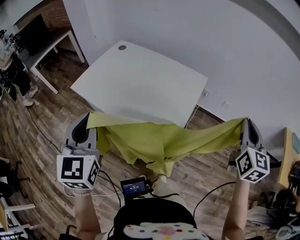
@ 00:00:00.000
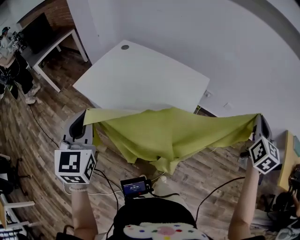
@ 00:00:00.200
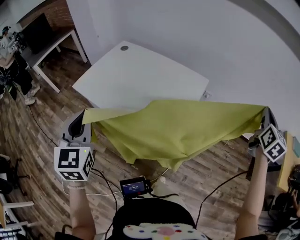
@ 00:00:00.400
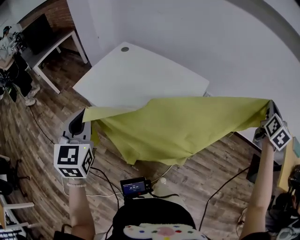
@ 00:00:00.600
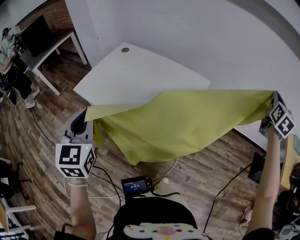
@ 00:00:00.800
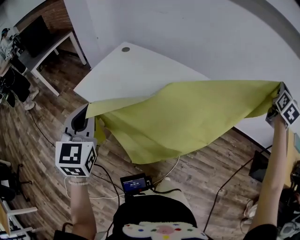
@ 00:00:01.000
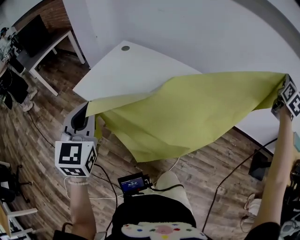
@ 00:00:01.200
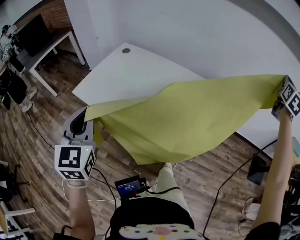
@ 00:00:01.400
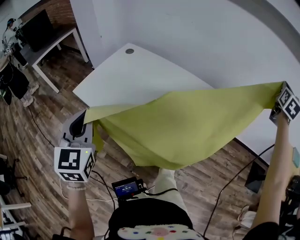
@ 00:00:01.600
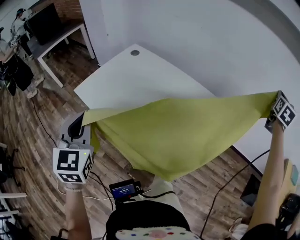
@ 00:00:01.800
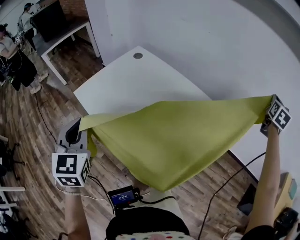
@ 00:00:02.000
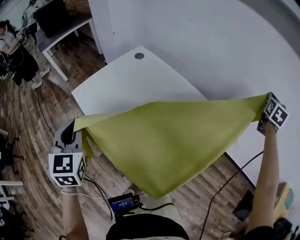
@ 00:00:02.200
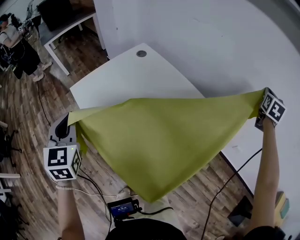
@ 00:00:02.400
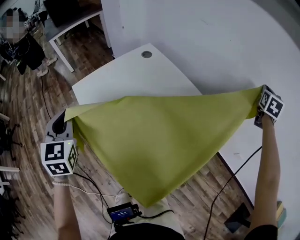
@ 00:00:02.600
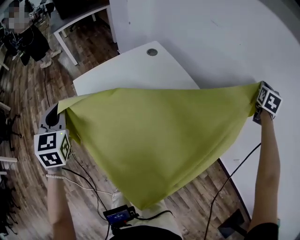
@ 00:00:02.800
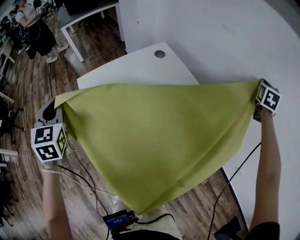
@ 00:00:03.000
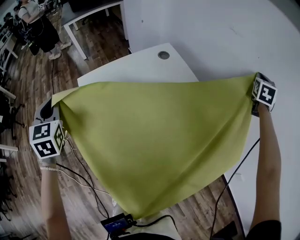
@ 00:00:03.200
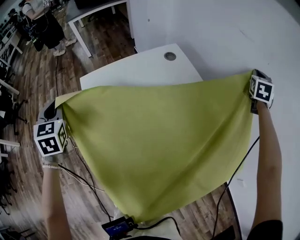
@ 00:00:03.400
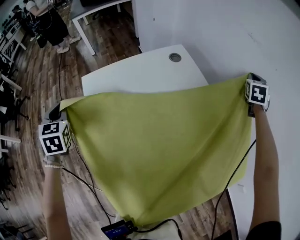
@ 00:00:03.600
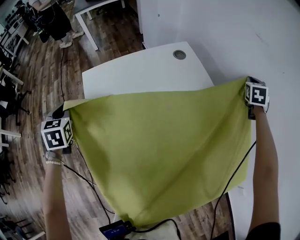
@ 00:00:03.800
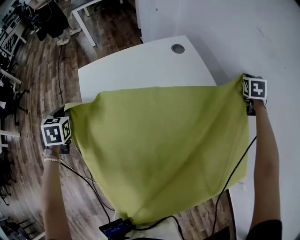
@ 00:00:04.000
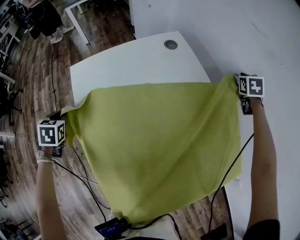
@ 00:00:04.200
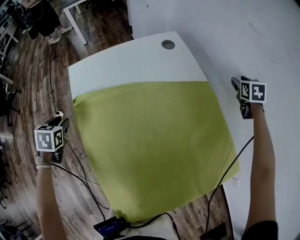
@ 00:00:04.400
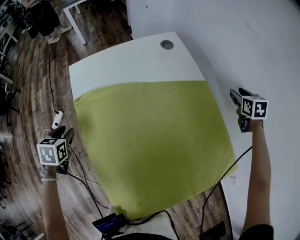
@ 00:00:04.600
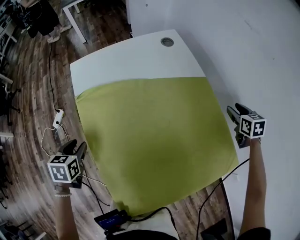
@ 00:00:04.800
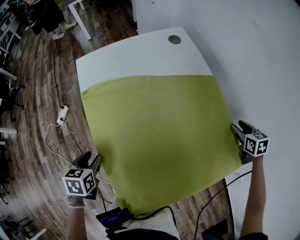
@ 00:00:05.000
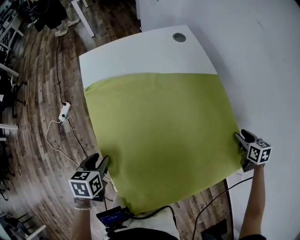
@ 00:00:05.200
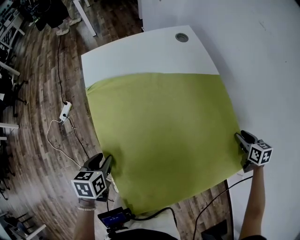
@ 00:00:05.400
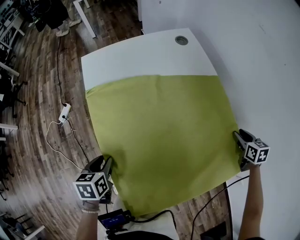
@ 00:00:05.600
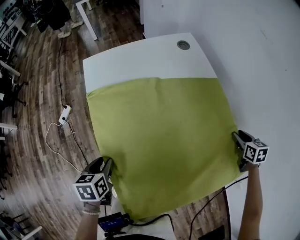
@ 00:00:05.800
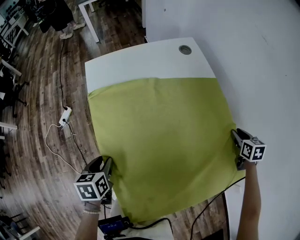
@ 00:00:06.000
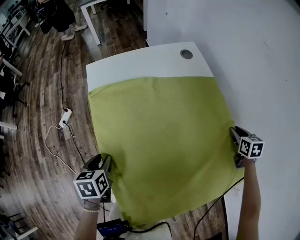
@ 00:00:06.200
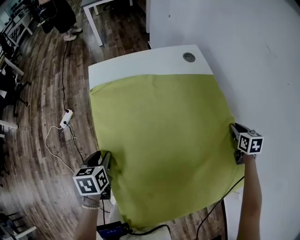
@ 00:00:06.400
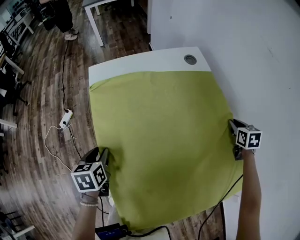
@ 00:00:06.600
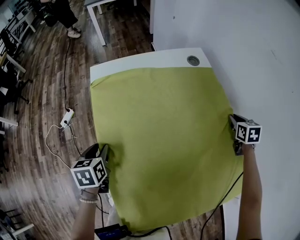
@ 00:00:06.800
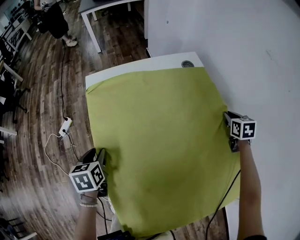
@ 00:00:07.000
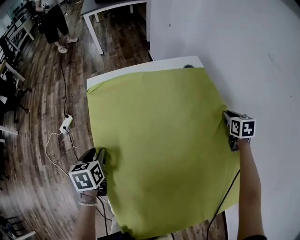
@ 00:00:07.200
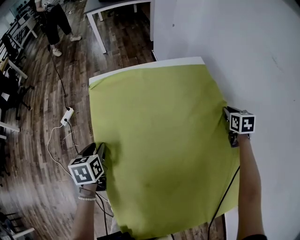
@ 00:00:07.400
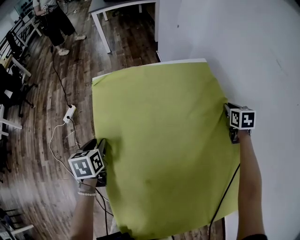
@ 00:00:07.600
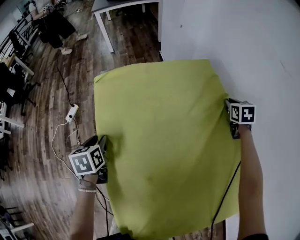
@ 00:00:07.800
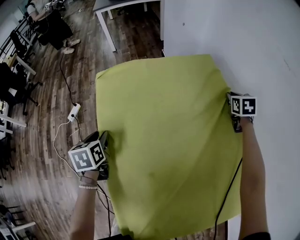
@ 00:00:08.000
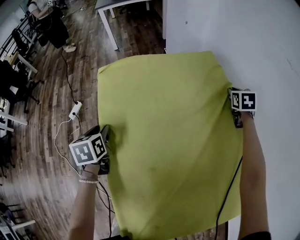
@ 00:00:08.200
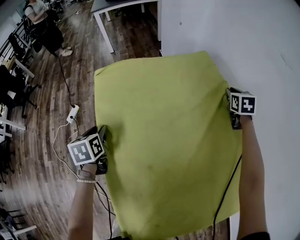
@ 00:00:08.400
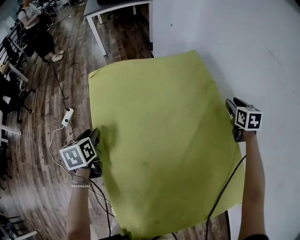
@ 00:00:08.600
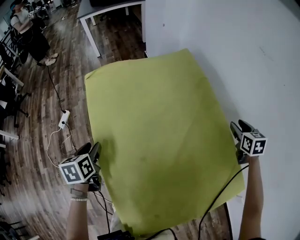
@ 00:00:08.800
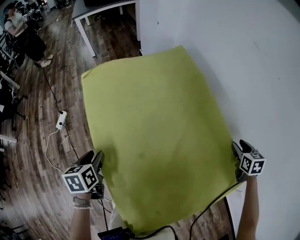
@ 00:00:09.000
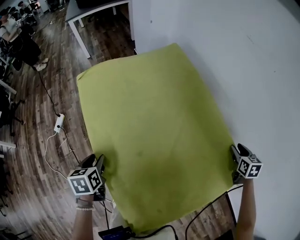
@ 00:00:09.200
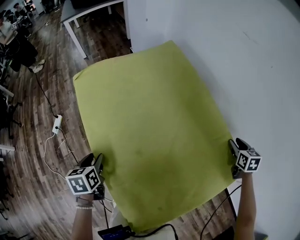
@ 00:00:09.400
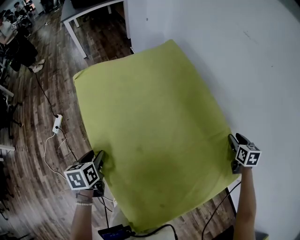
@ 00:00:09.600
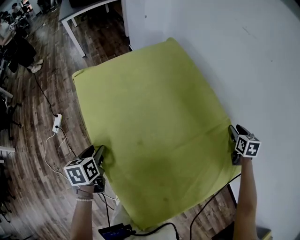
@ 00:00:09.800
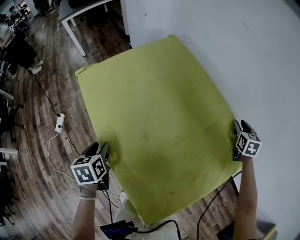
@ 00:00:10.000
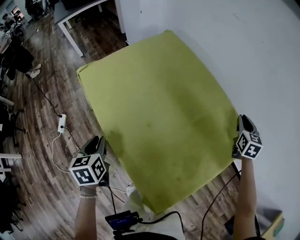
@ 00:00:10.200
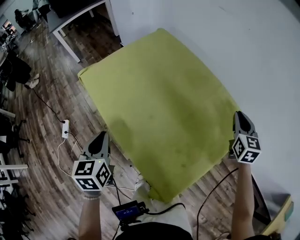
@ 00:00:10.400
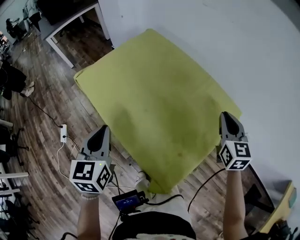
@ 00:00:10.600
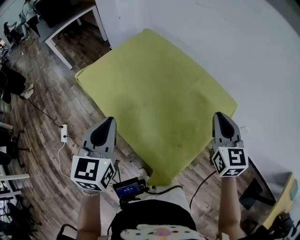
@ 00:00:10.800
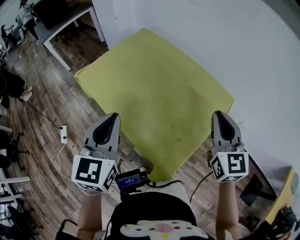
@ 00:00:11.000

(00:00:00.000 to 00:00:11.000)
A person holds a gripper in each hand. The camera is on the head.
00:00:00.000 - 00:00:01.600: The left gripper moves to the left and forward, approximately 10 cm. The right gripper is displaced forward, upward and to the right by approximately 30 cm, and turns by some 20 degrees.
00:00:01.600 - 00:00:03.200: The right gripper ends up approximately 60 cm from where it was, and changes its angle by roughly 40 degrees. Meanwhile the left gripper changes place by roughly 20 cm, and rotates about 50 degrees.
00:00:03.200 - 00:00:04.800: The left gripper moves downward and backward, approximately 25 cm, points its fingers roughly 30 degrees further downward, and opens. The right gripper heads downward and to the left, covering roughly 25 cm, swivels roughly 50 degrees, and opens.
00:00:04.800 - 00:00:06.200: The right gripper goes backward and returns, some 10 cm each way, and closes its fingers. The left gripper shifts some 5 cm to the right.
00:00:06.200 - 00:00:07.800: The left gripper moves forward, approximately 15 cm; the right gripper moves forward, about 25 cm.
00:00:07.800 - 00:00:09.400: The right gripper moves backward, about 35 cm, and opens its fingers; the left gripper moves backward, some 10 cm.
00:00:09.400 - 00:00:11.000: The right gripper is displaced backward, upward and to the left by some 40 cm, tilts its fingers about 40 degrees upward, and closes up. The left gripper shifts approximately 30 cm upward, angles its fingers upward, by roughly 40 degrees, and closes up.

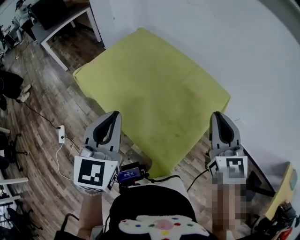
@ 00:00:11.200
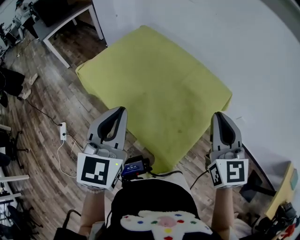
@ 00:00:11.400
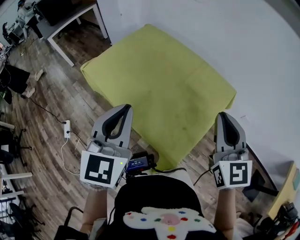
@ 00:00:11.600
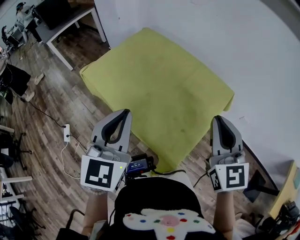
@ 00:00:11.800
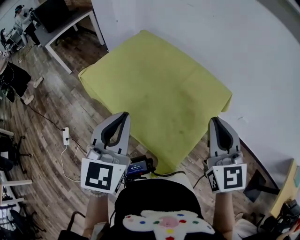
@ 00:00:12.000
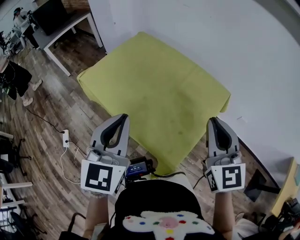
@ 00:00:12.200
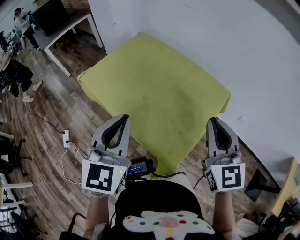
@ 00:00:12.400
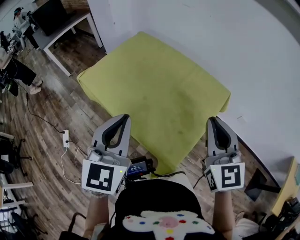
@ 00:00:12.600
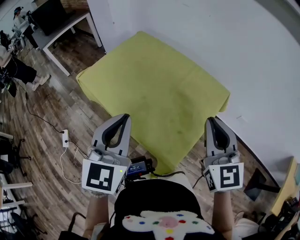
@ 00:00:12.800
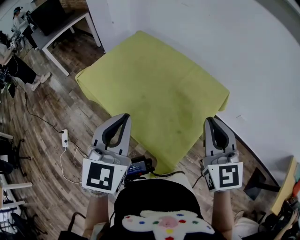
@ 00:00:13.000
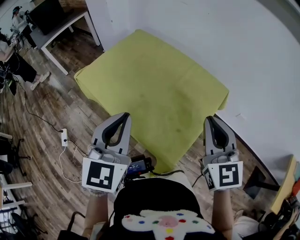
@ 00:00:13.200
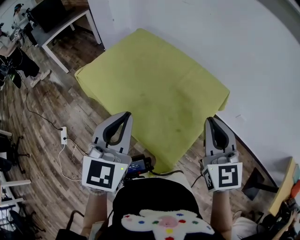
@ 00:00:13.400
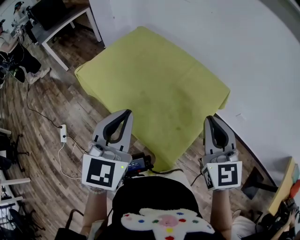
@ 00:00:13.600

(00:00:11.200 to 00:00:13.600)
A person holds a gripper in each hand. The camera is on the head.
00:00:11.200 - 00:00:12.400: The right gripper ends up roughly 5 cm from where it was.
00:00:12.400 - 00:00:13.600: The grippers stay close to where they were, moving slightly.

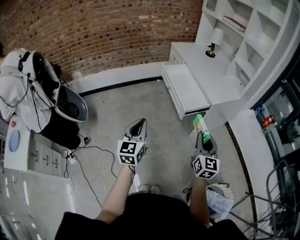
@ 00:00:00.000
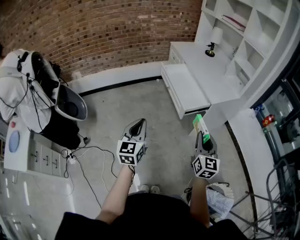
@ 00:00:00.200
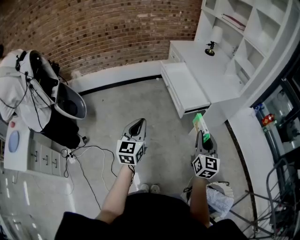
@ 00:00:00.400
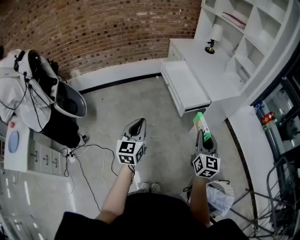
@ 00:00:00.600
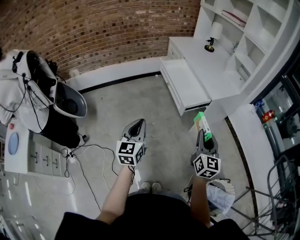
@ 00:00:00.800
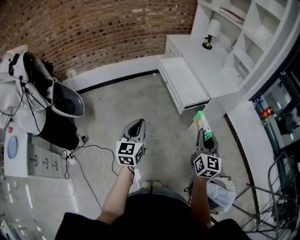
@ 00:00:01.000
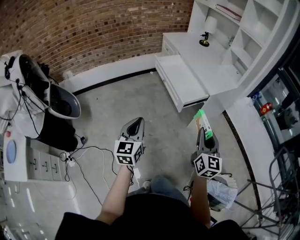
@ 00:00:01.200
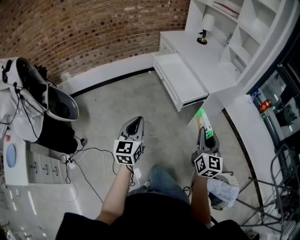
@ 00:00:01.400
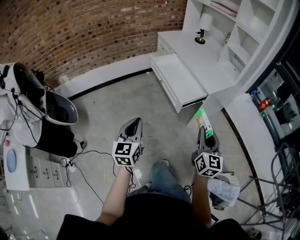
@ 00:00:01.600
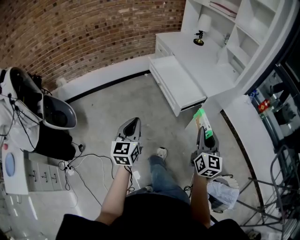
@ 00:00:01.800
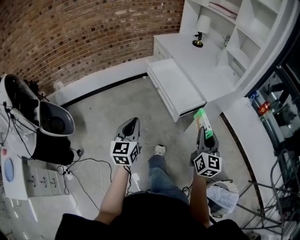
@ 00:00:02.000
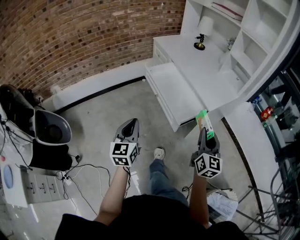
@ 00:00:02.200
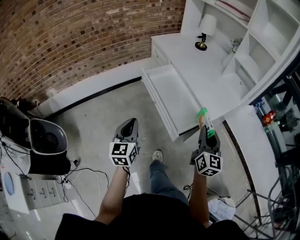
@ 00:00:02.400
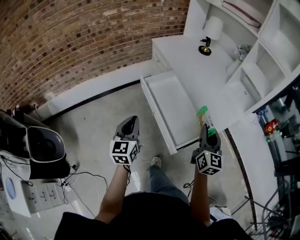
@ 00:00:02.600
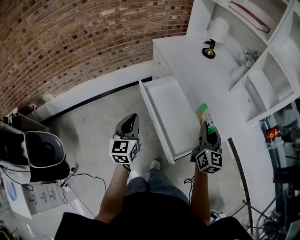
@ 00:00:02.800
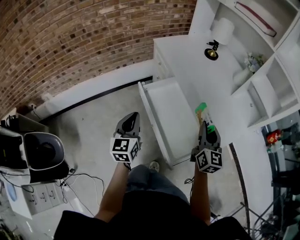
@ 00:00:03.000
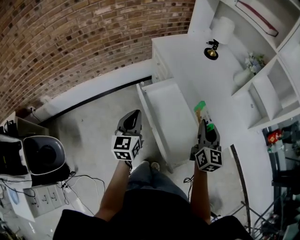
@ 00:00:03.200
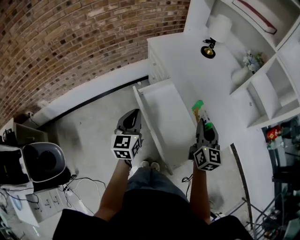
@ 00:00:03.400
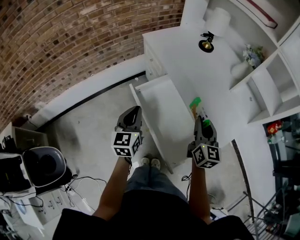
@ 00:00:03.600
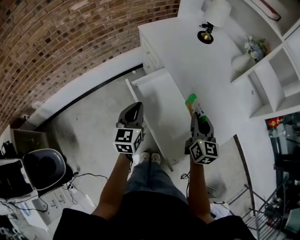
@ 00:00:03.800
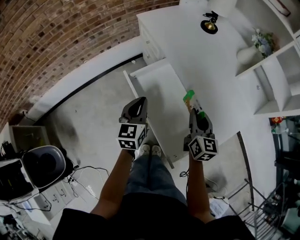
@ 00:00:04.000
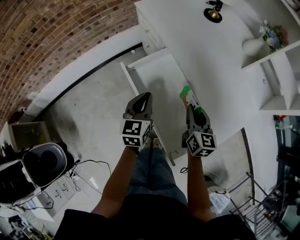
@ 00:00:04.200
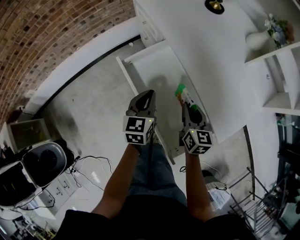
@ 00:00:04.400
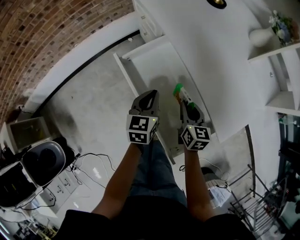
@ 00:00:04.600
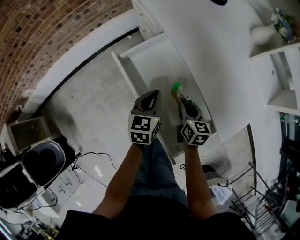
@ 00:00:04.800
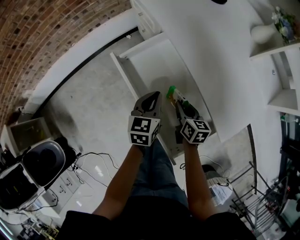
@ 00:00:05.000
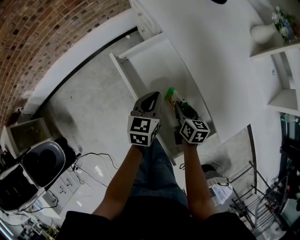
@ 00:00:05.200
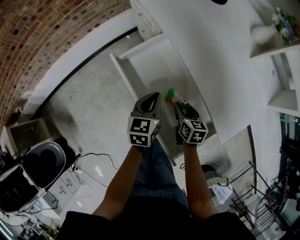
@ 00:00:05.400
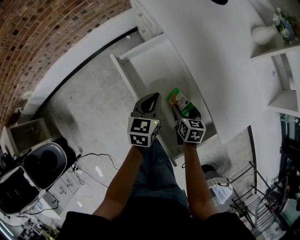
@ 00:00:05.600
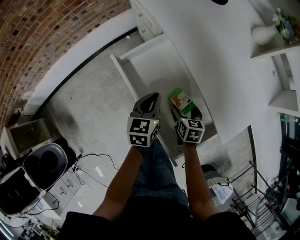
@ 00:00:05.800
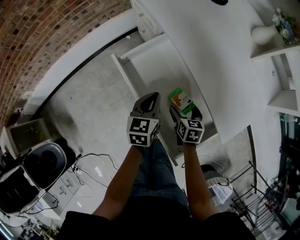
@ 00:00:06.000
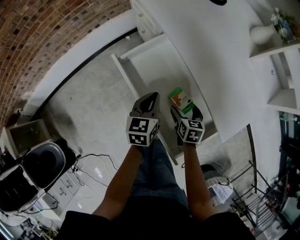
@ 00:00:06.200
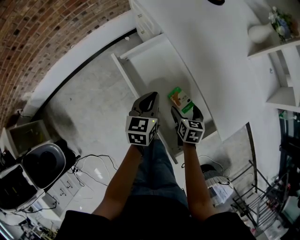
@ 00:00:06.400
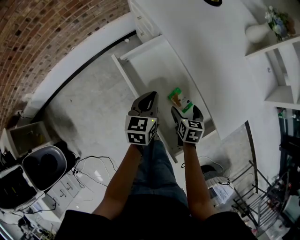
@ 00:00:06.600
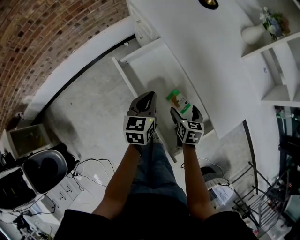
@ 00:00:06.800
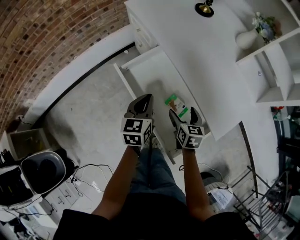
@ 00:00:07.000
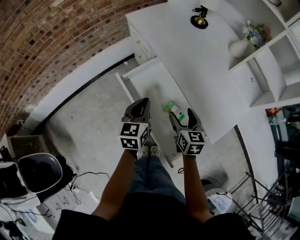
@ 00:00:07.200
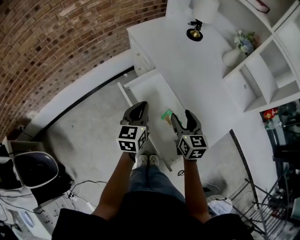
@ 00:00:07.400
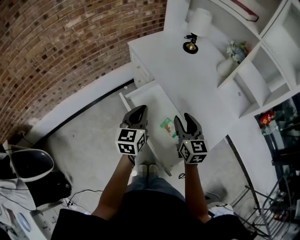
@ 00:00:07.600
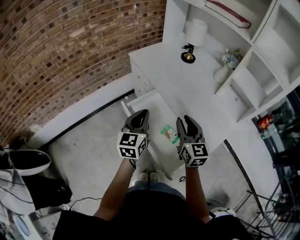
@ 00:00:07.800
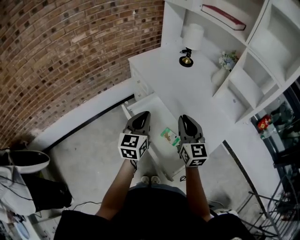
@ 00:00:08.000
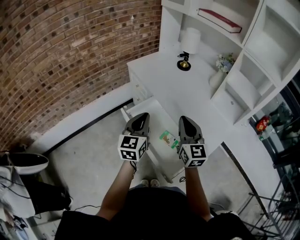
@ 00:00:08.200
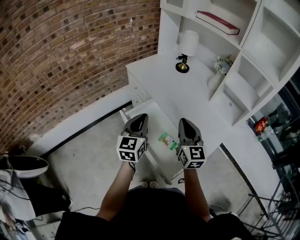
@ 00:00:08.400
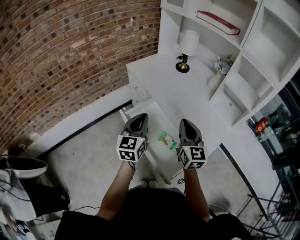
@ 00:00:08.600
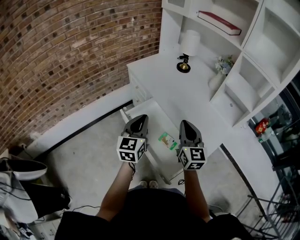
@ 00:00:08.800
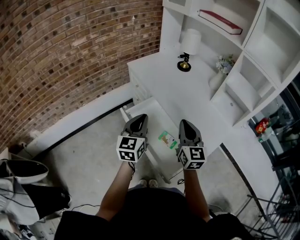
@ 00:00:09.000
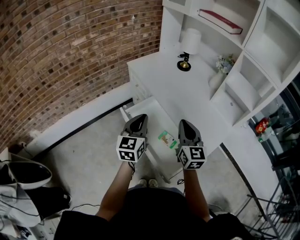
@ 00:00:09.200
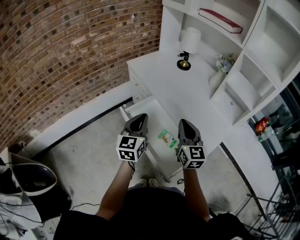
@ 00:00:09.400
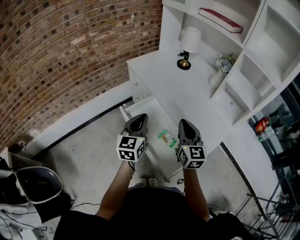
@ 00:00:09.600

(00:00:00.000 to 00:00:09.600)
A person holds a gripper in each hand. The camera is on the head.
00:00:00.000 - 00:00:01.600: The left gripper shifts by roughly 5 cm.
00:00:01.600 - 00:00:03.200: The pair of grippers is taken forward, approximately 60 cm.
00:00:03.200 - 00:00:04.800: The right gripper goes some 25 cm downward, and rotates about 30 degrees. The left gripper travels downward, to the right and forward by about 25 cm, and swivels approximately 30 degrees.
00:00:04.800 - 00:00:06.400: The right gripper changes place by about 5 cm, and opens.
00:00:06.400 - 00:00:08.000: The right gripper heads upward, covering approximately 35 cm, points its fingers some 40 degrees further upward, and closes; the left gripper moves upward, some 25 cm, and swivels some 30 degrees.
00:00:08.000 - 00:00:09.600: The grippers stay close to where they were, moving slightly.
